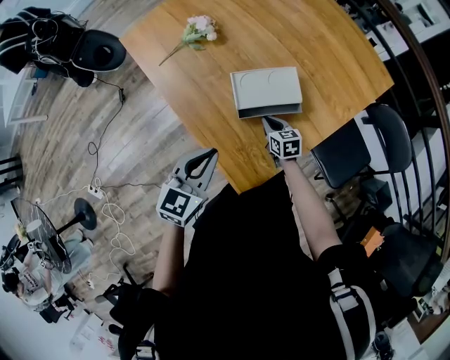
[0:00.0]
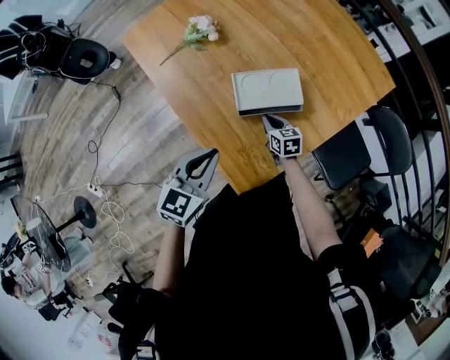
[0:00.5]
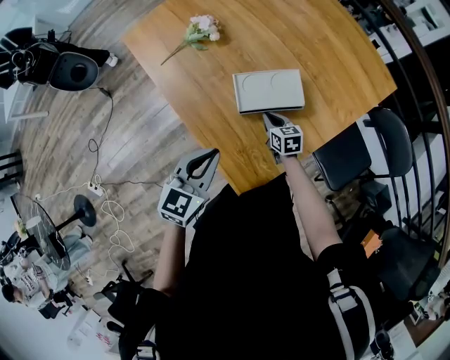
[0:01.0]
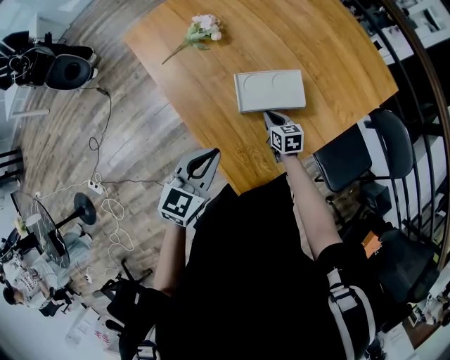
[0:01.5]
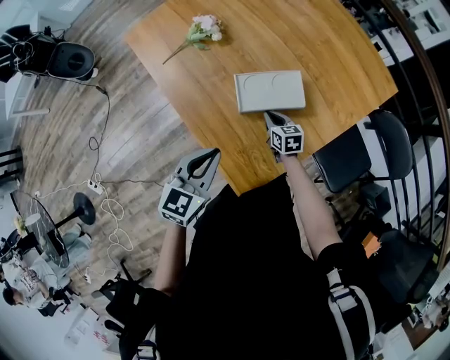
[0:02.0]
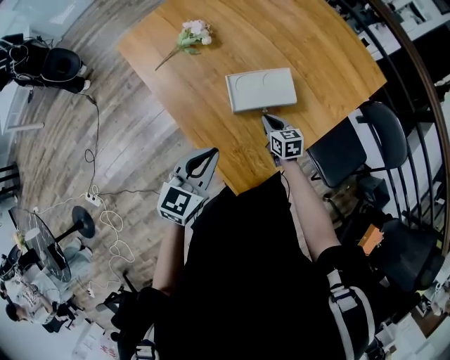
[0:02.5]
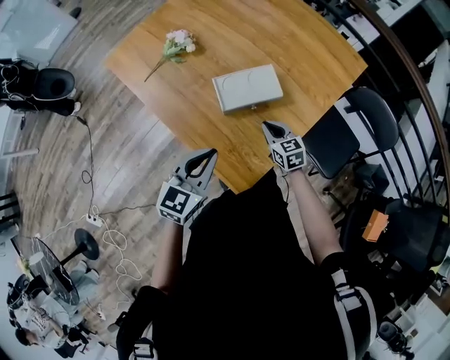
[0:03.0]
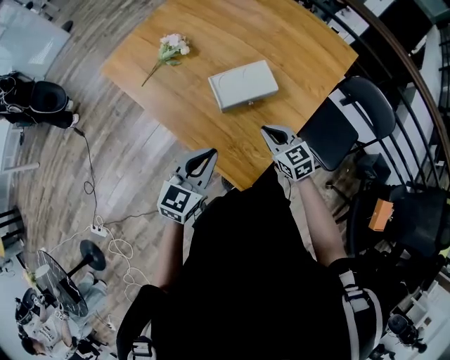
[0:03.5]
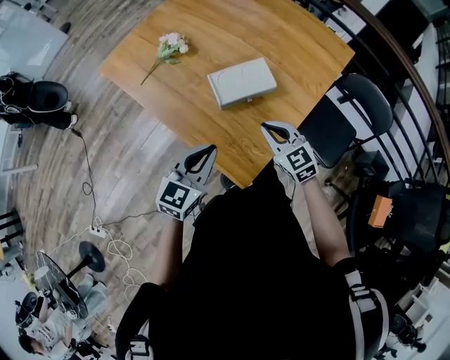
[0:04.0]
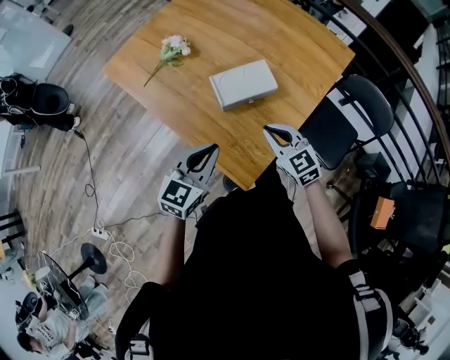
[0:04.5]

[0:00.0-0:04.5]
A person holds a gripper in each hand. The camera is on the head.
0:00.0 to 0:02.0: There are only small adjustments of the grippers.
0:02.0 to 0:04.5: The right gripper goes about 25 cm upward and backward, and swivels about 30 degrees. Meanwhile the left gripper heads backward, covering about 5 cm.

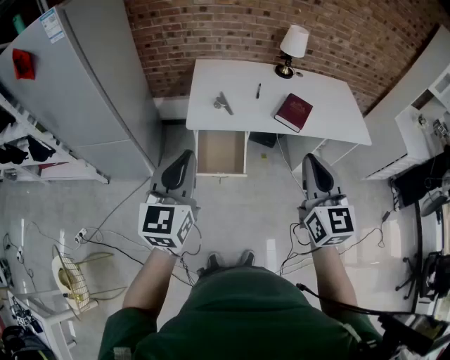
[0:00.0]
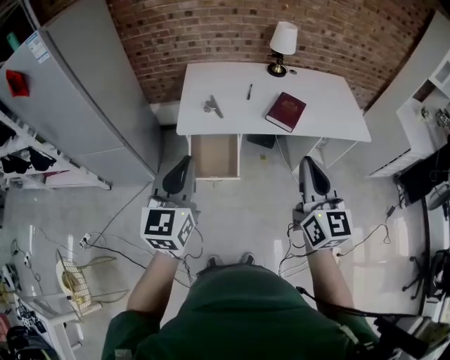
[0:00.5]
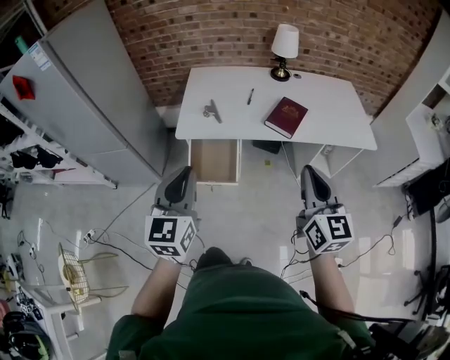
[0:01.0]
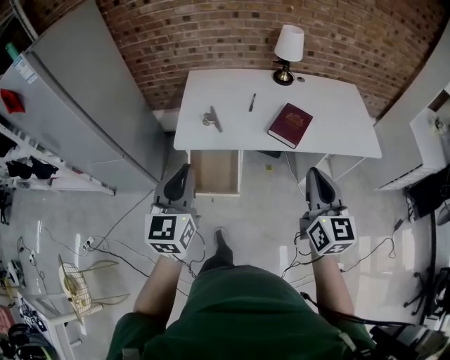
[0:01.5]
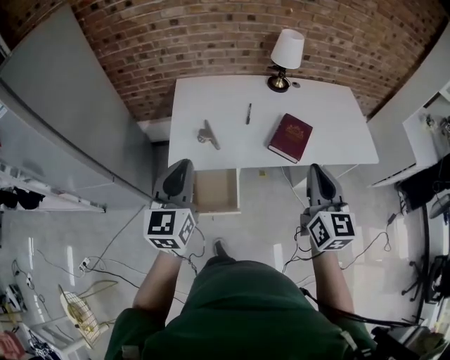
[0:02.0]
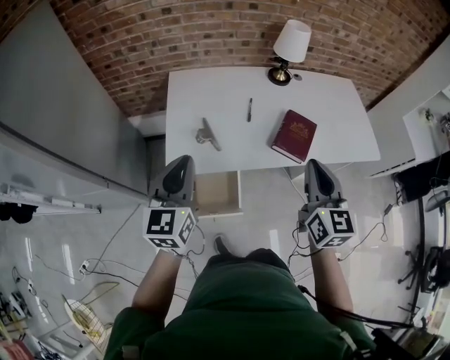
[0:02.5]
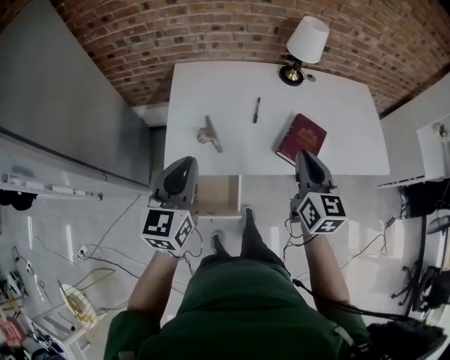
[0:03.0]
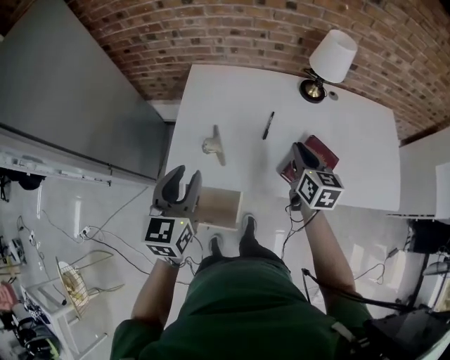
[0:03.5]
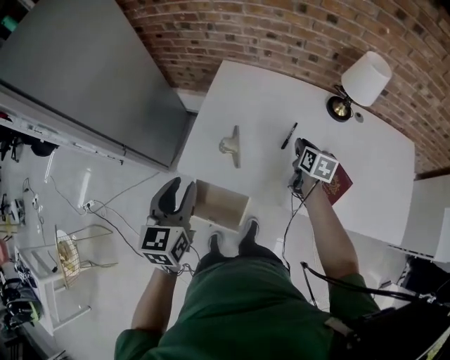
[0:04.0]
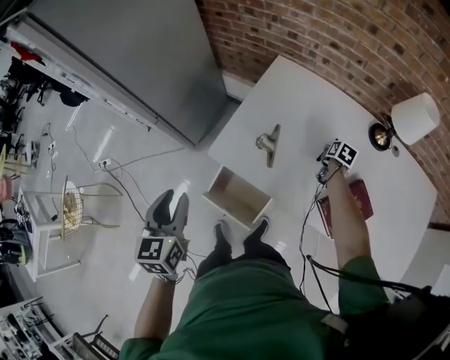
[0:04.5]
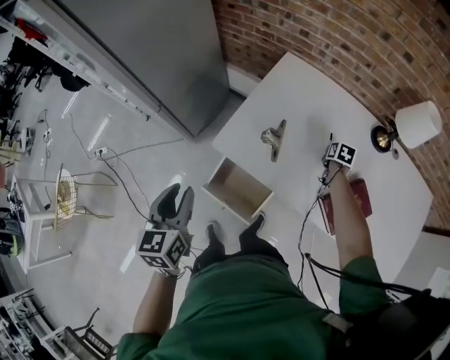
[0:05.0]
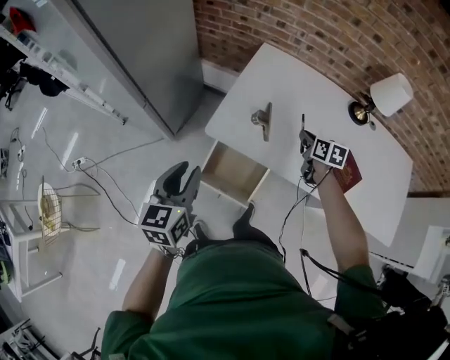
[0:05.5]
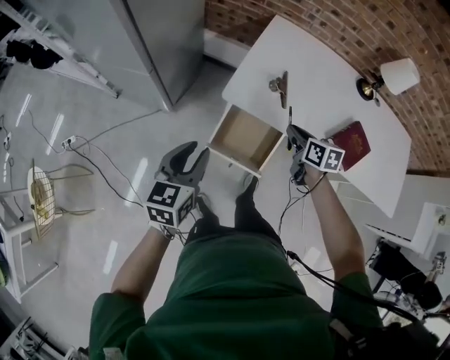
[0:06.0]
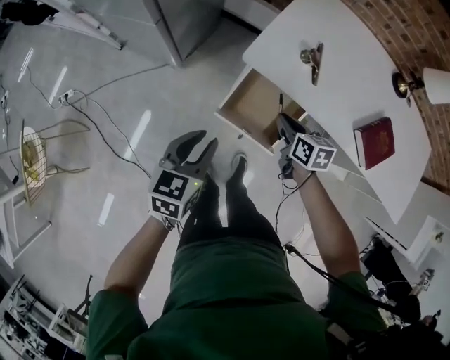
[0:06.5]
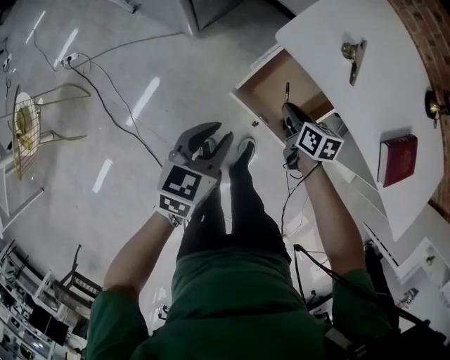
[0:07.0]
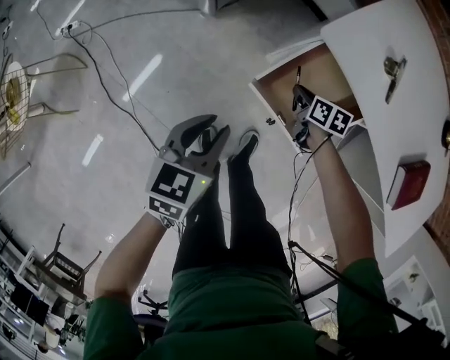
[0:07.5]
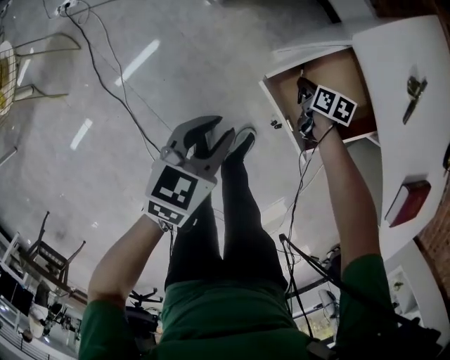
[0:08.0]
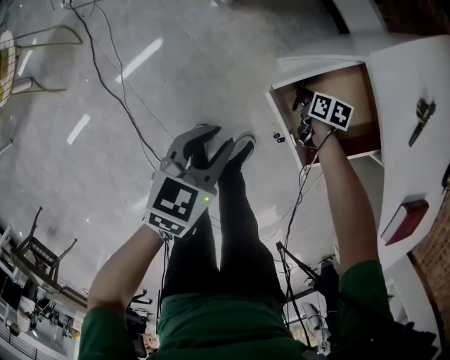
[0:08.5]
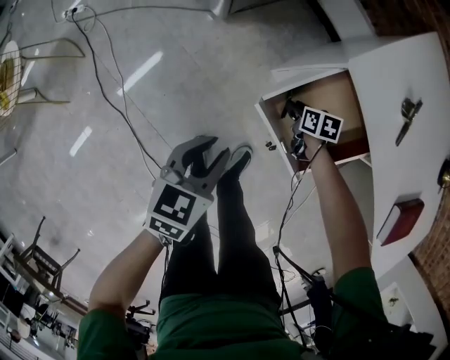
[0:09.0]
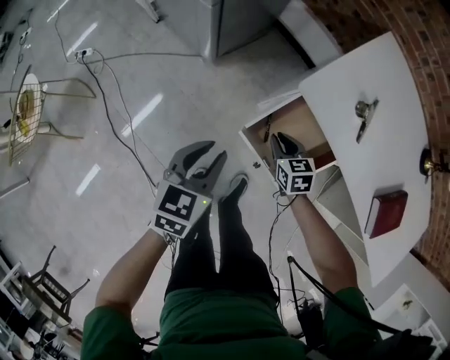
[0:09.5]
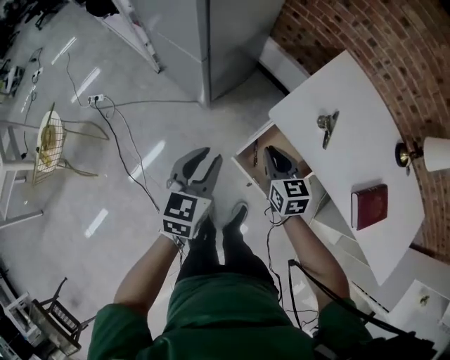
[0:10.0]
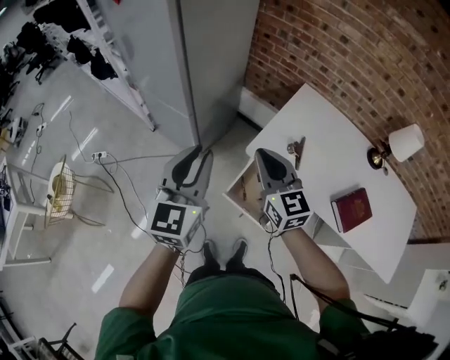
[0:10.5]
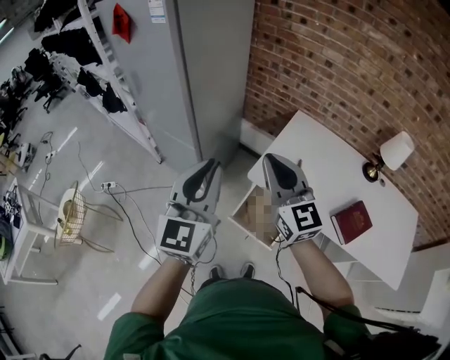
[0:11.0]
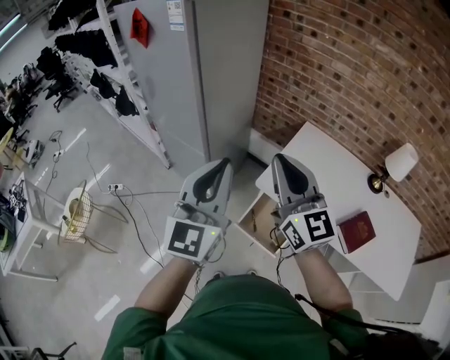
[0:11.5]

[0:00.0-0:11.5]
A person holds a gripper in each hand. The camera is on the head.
0:00.0 to 0:02.0: The right gripper heads forward and to the right, covering about 25 cm. The left gripper moves forward, roughly 25 cm.
0:02.0 to 0:04.0: The left gripper goes about 15 cm forward and downward, swivels approximately 30 degrees, and opens its fingers. The right gripper shifts roughly 50 cm forward and downward, and tips its fingers downward by approximately 30 degrees.
0:04.0 to 0:06.0: The right gripper moves to the left and backward, some 30 cm, and turns by about 20 degrees. The left gripper is displaced to the left, backward and downward by about 25 cm.
0:06.0 to 0:07.5: The left gripper shifts some 25 cm downward. The right gripper moves downward and to the left, roughly 35 cm, and changes its angle by approximately 20 degrees.
0:07.5 to 0:09.5: The right gripper travels upward and to the left by some 10 cm, and swivels some 30 degrees; the left gripper travels upward by roughly 5 cm.
0:09.5 to 0:11.5: Both grippers travel together upward, roughly 60 cm. The right gripper tips its fingers upward by roughly 60 degrees, while the left gripper tilts its fingers approximately 50 degrees upward, and closes its fingers.

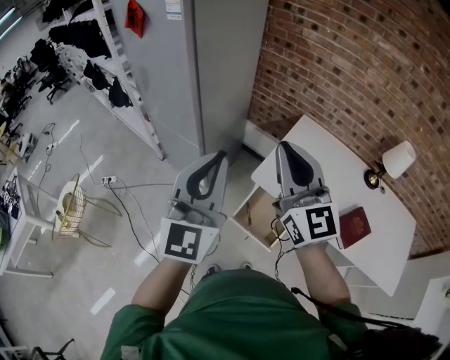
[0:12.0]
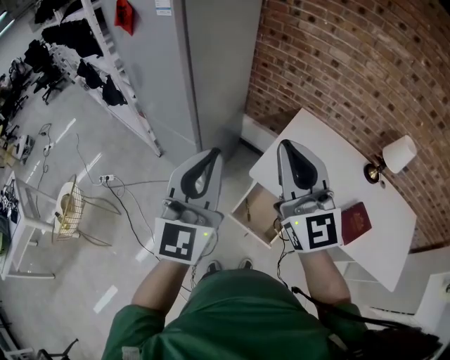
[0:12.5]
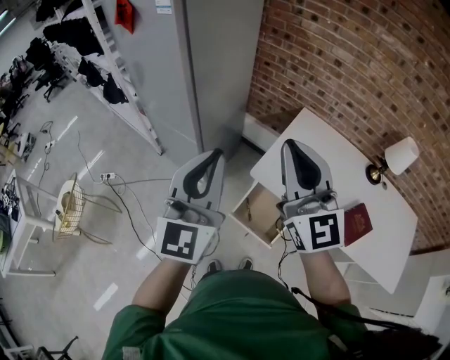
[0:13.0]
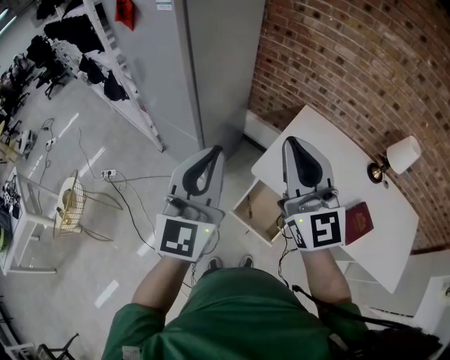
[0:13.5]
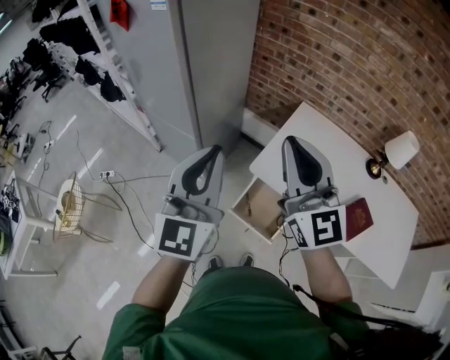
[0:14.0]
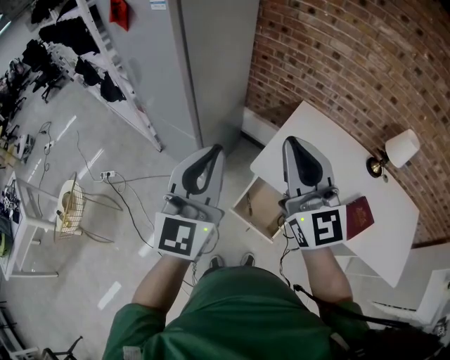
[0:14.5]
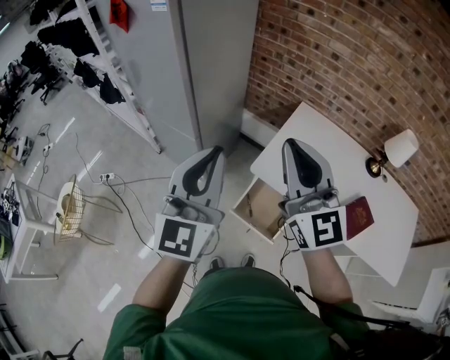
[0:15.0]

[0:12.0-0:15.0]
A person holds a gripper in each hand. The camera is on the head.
0:12.0 to 0:13.5: There are only small adjustments of the grippers.
0:13.5 to 0:15.0: Both grippers stay put.

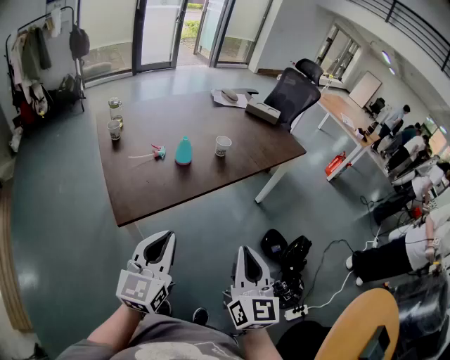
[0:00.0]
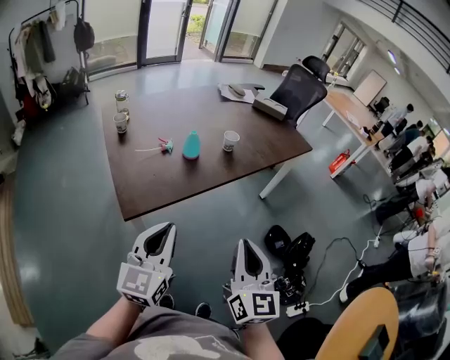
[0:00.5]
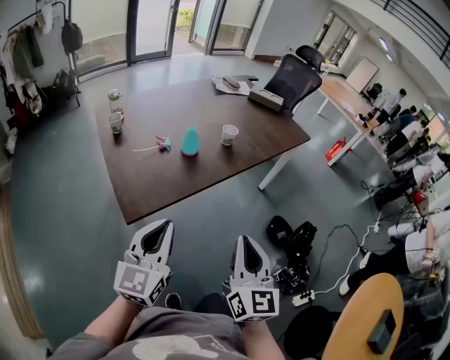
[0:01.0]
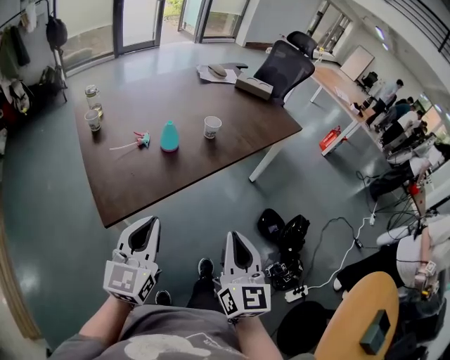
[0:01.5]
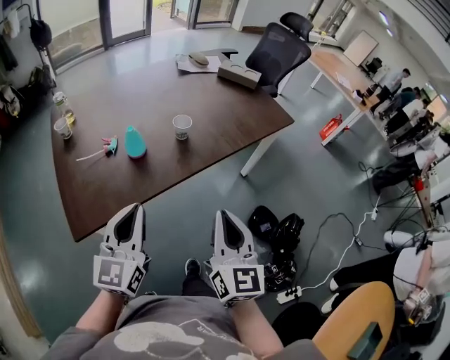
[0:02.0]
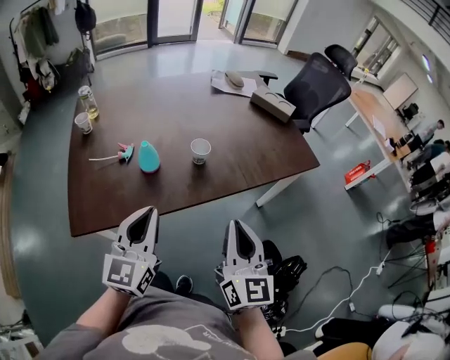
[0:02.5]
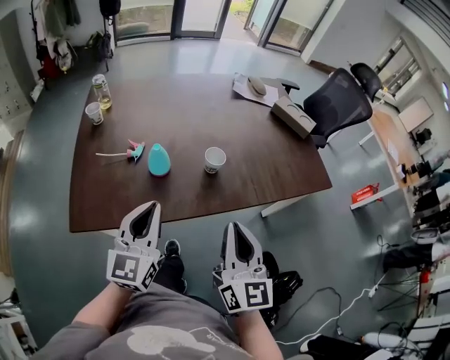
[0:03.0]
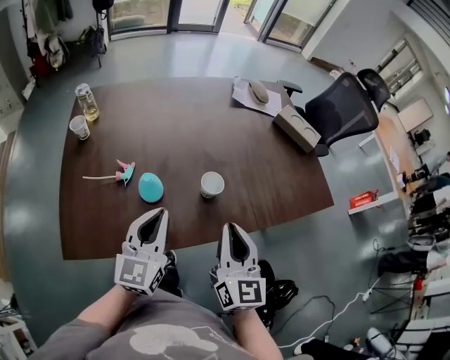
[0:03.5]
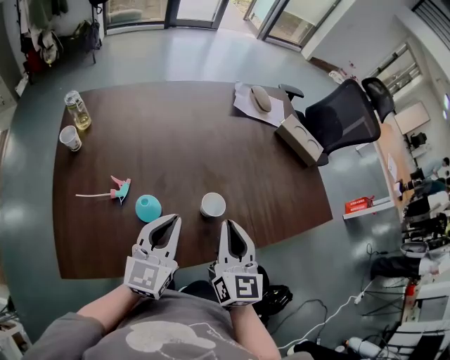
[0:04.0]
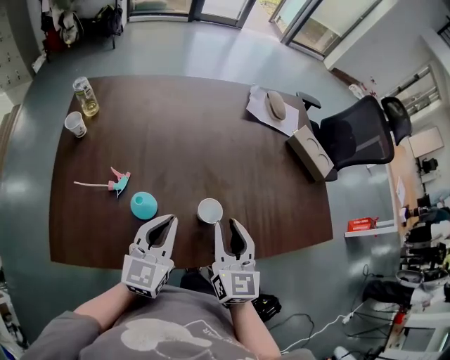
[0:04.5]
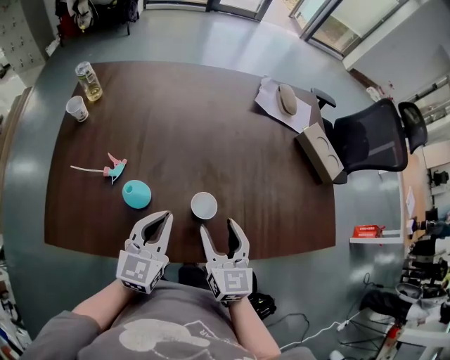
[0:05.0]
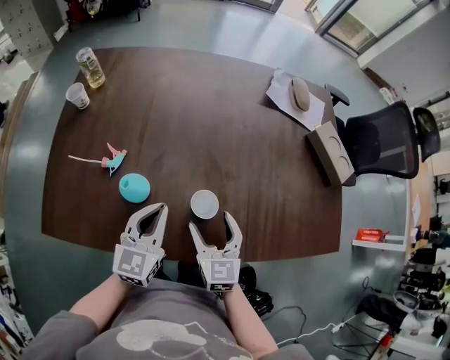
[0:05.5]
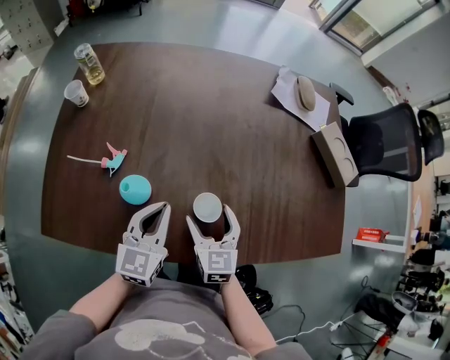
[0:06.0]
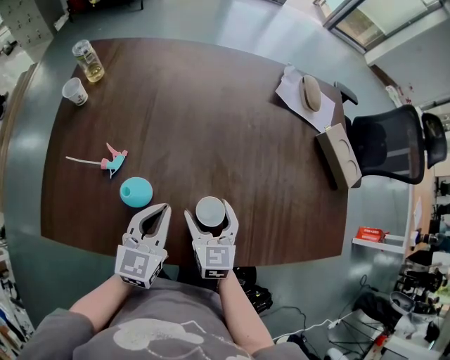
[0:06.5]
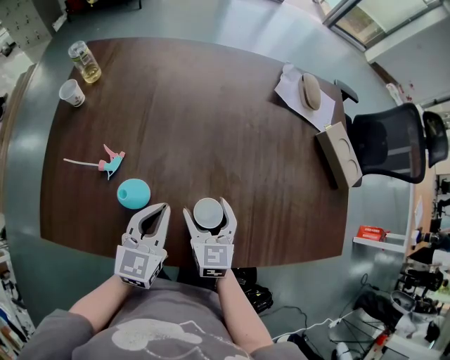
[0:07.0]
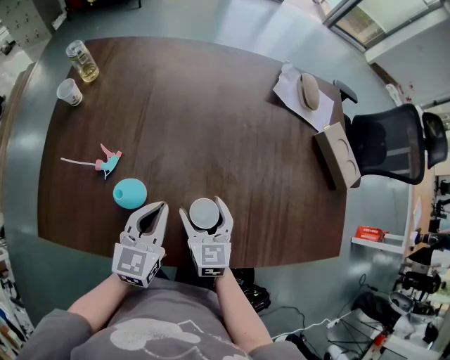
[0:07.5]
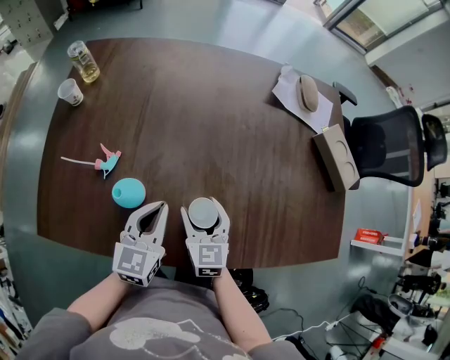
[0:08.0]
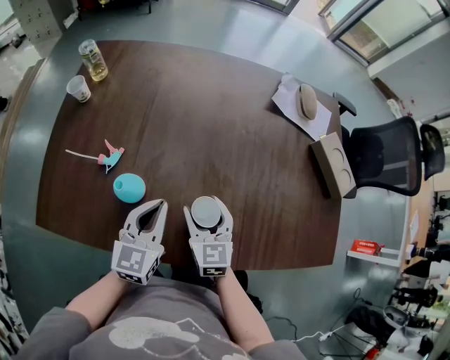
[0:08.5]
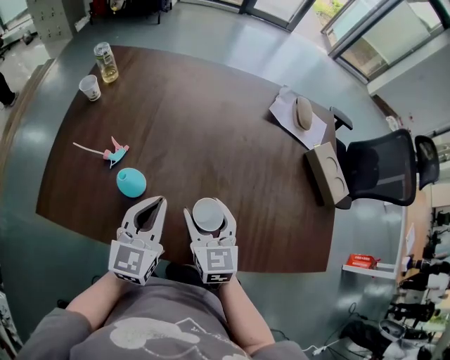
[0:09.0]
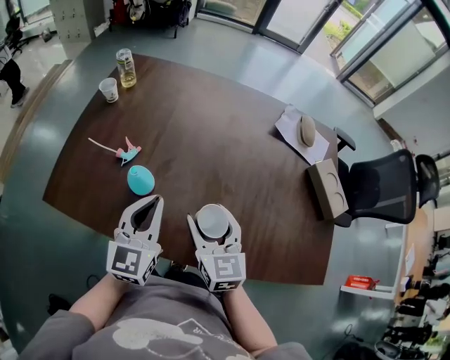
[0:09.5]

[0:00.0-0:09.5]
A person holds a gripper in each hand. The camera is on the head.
0:00.0 to 0:02.0: Both grippers travel together forward, some 20 cm.
0:02.0 to 0:04.0: Both grippers move forward, some 30 cm.
0:04.0 to 0:05.5: The left gripper heads downward, covering approximately 10 cm, while the right gripper goes some 15 cm downward, swivels roughly 30 degrees, and opens its fingers.
0:05.5 to 0:07.5: The right gripper goes some 5 cm forward.
0:07.5 to 0:09.5: Both grippers move upward, some 10 cm. The left gripper turns by some 20 degrees.
